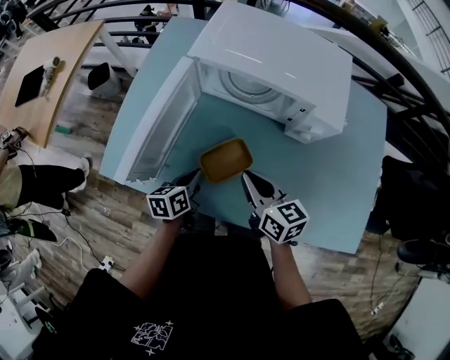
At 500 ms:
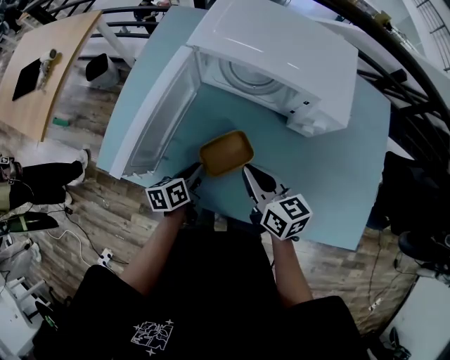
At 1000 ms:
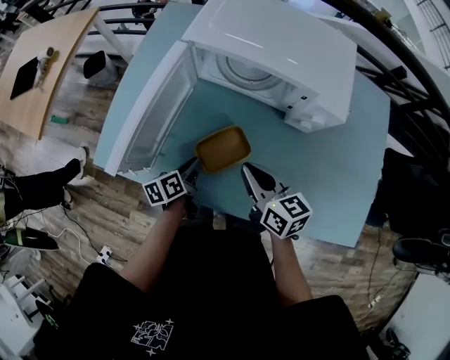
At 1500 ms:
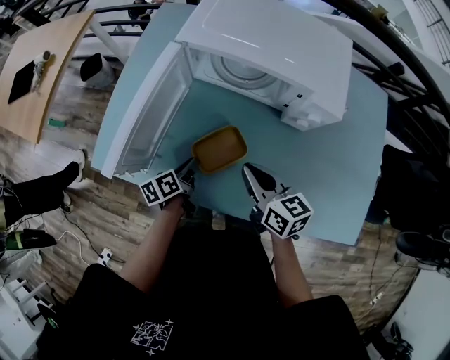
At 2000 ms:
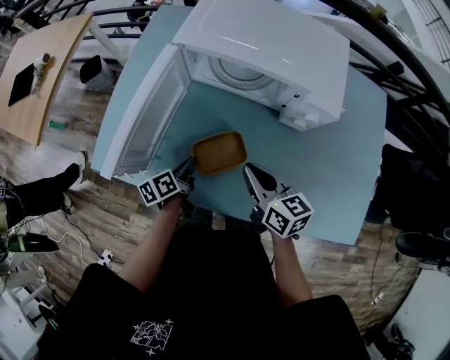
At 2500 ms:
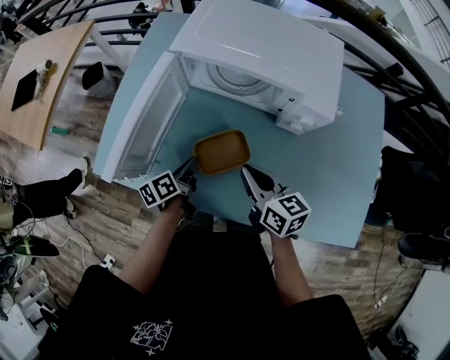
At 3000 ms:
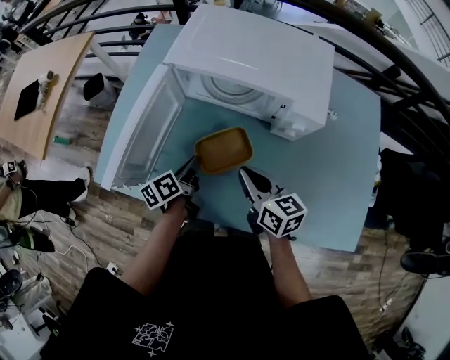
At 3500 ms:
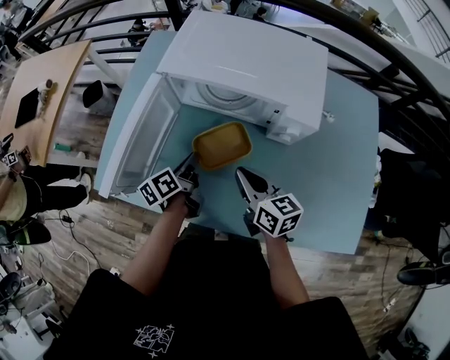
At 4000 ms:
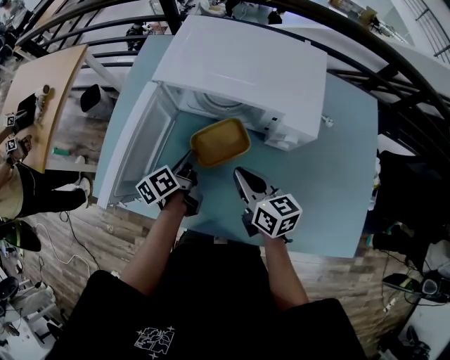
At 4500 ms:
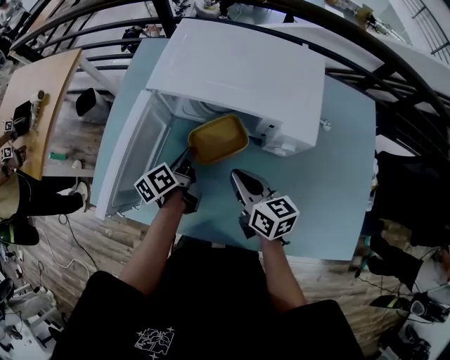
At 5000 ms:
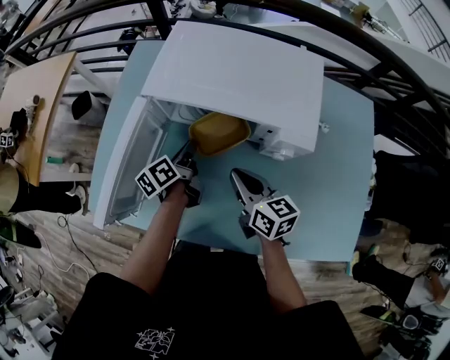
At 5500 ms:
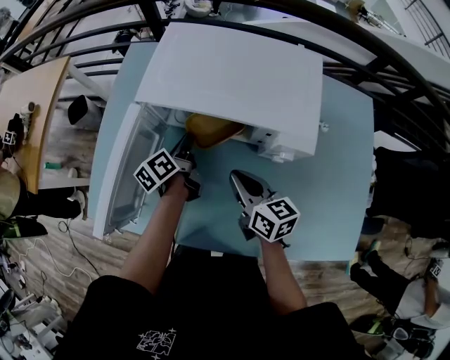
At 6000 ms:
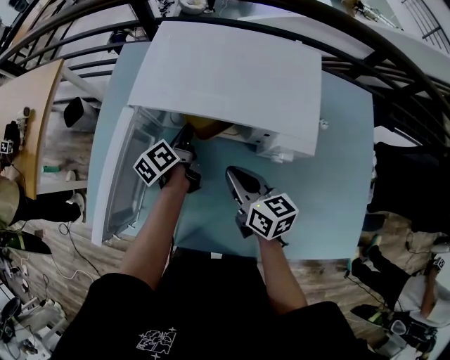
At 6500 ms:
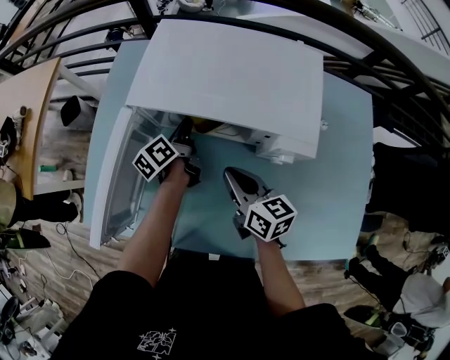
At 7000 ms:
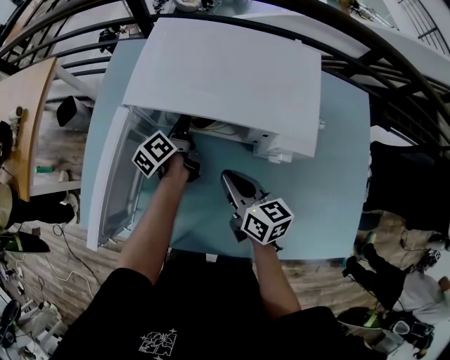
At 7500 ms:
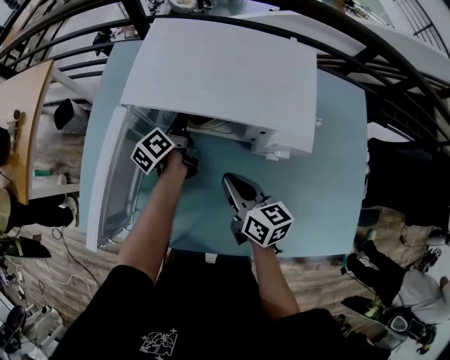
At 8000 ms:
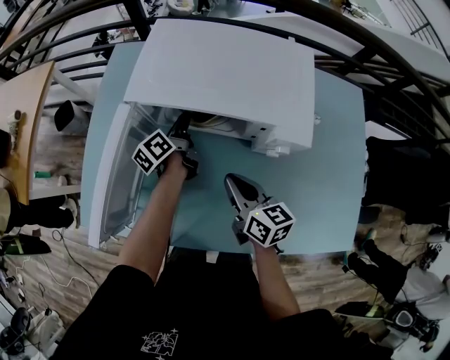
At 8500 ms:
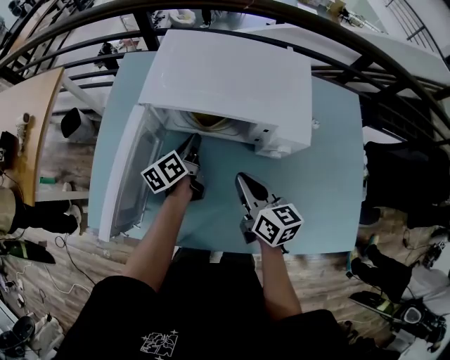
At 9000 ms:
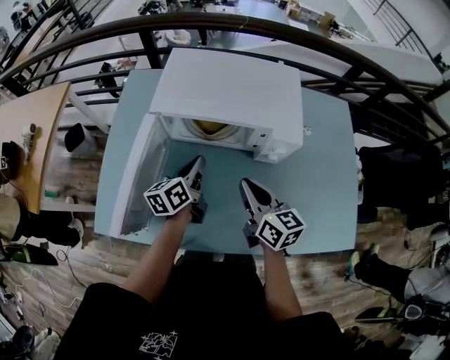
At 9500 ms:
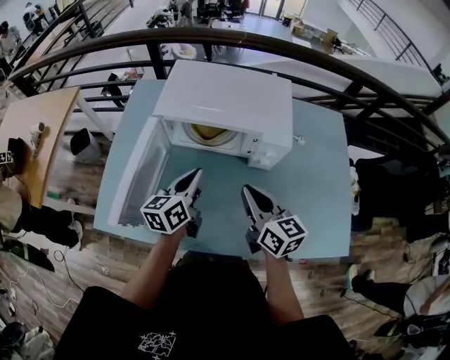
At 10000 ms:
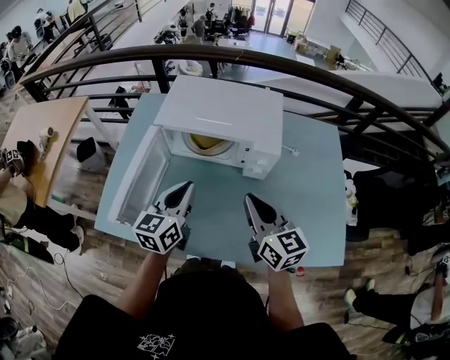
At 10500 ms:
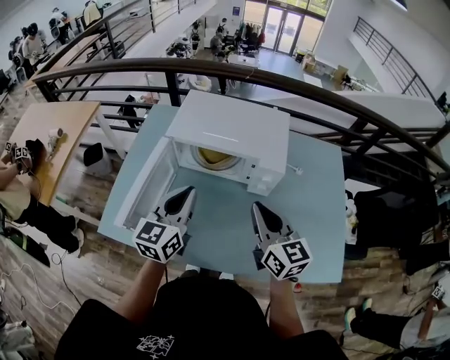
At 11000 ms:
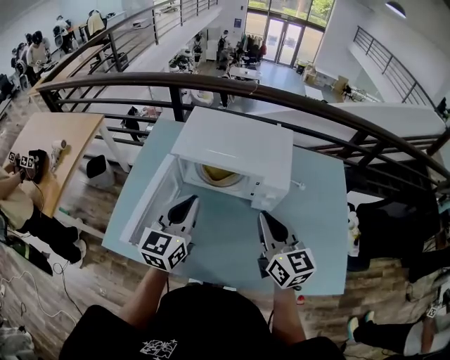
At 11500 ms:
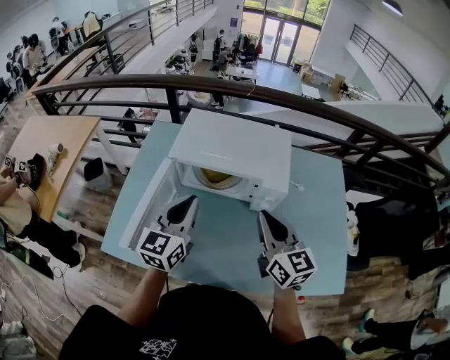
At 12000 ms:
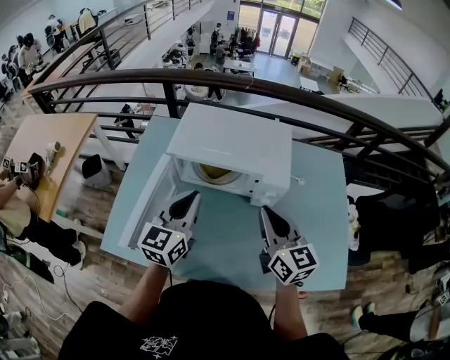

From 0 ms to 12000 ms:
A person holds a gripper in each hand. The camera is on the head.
From 0 ms to 2000 ms: The left gripper swivels approximately 20 degrees.
From 2000 ms to 4000 ms: The right gripper is displaced forward by about 5 cm. Meanwhile the left gripper goes some 15 cm forward, upward and to the right.
From 4000 ms to 6000 ms: The left gripper goes some 15 cm forward. Meanwhile the right gripper goes about 5 cm forward.
From 6000 ms to 8000 ms: The grippers make only small movements.
From 8000 ms to 10000 ms: The right gripper heads upward and backward, covering roughly 20 cm, and swivels about 20 degrees. Meanwhile the left gripper moves backward and upward, some 30 cm, and rolls clockwise, seen from behind, by roughly 50 degrees.
From 10000 ms to 12000 ms: The left gripper shifts about 5 cm upward, while the right gripper moves roughly 5 cm.

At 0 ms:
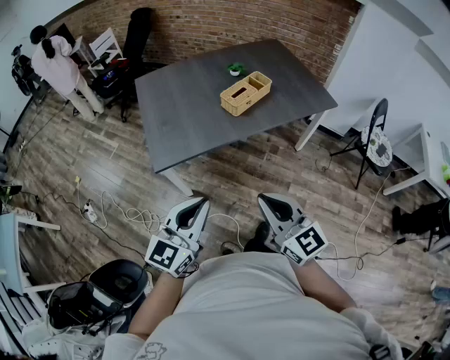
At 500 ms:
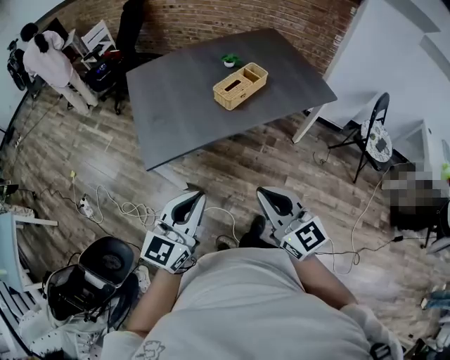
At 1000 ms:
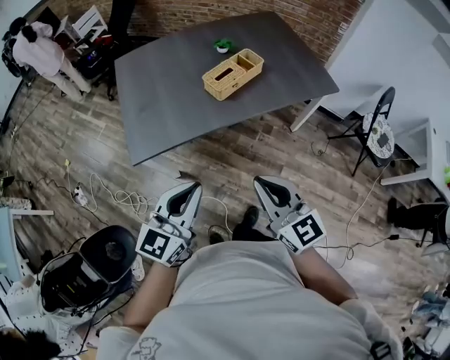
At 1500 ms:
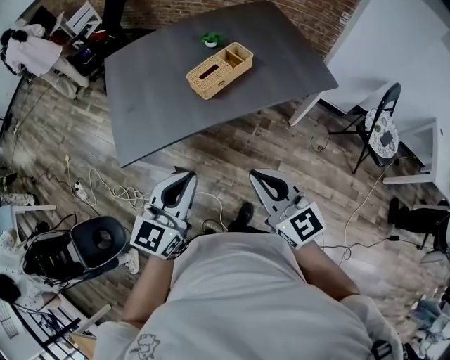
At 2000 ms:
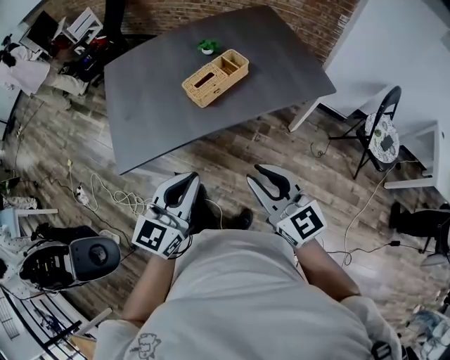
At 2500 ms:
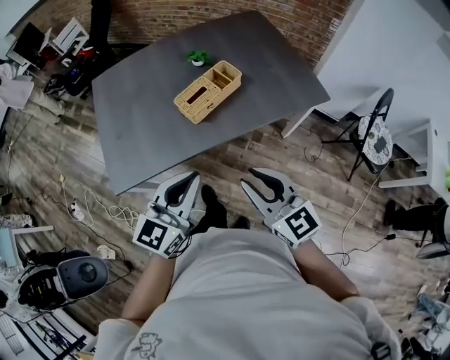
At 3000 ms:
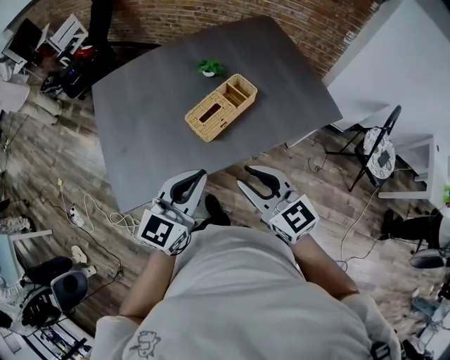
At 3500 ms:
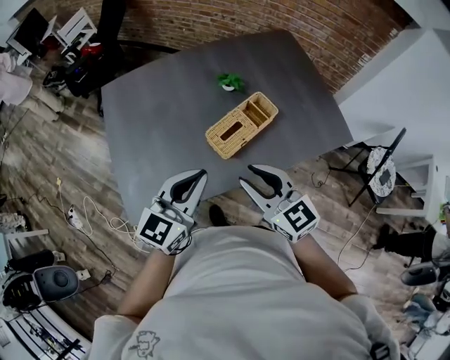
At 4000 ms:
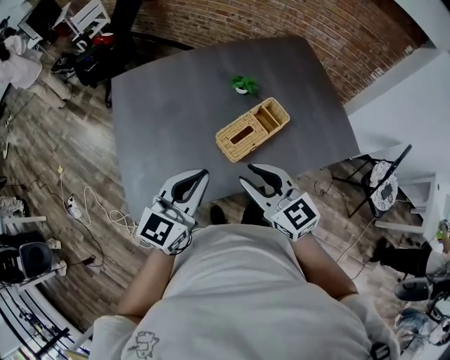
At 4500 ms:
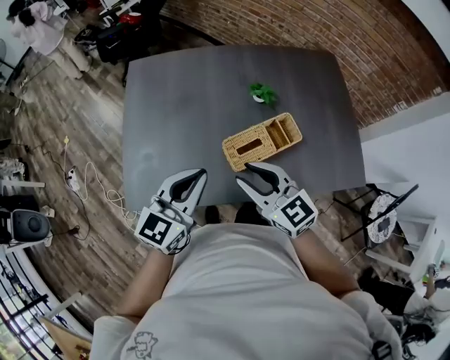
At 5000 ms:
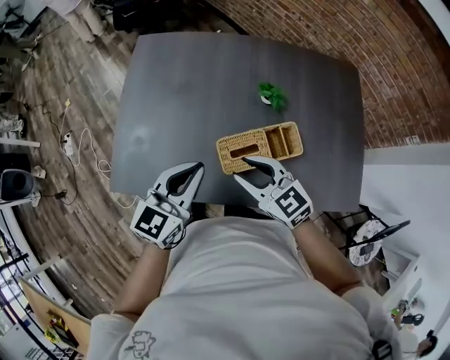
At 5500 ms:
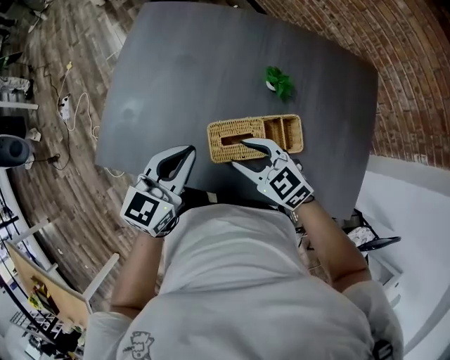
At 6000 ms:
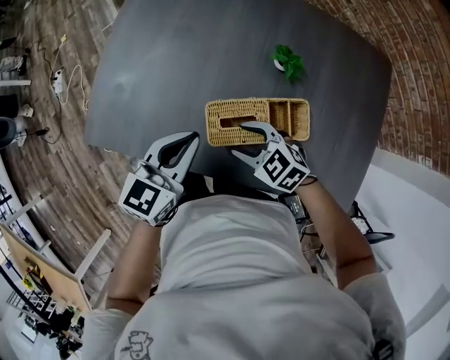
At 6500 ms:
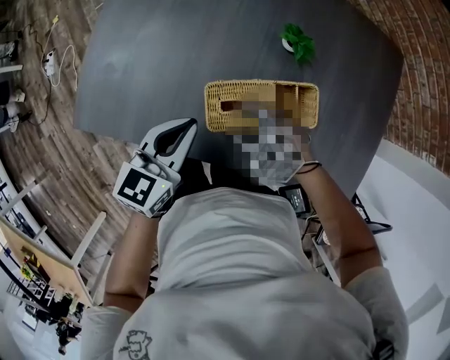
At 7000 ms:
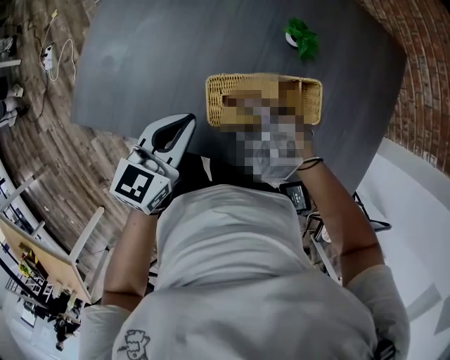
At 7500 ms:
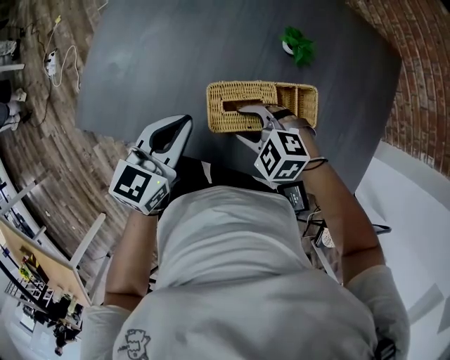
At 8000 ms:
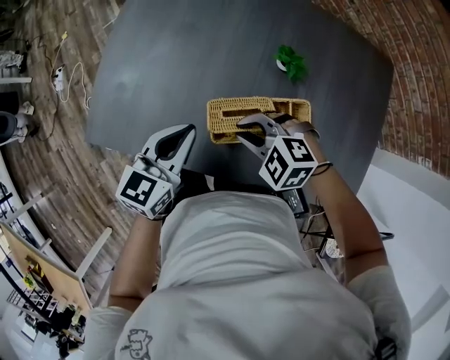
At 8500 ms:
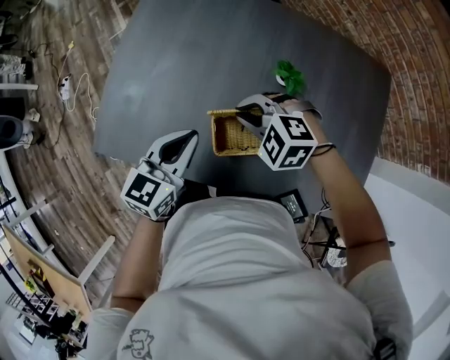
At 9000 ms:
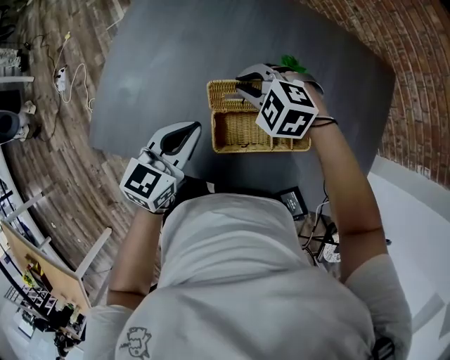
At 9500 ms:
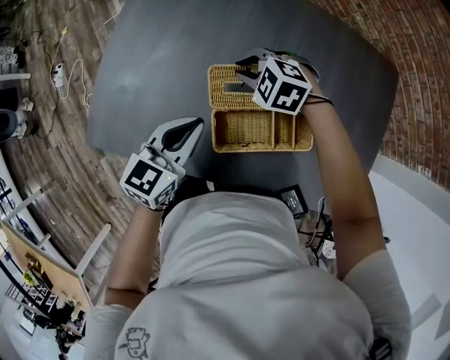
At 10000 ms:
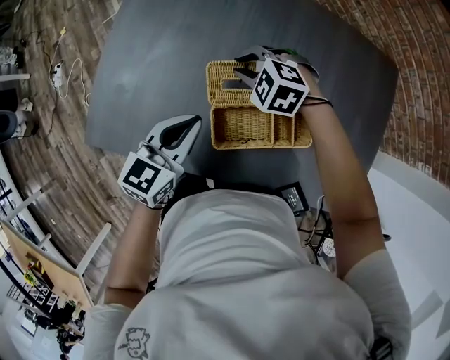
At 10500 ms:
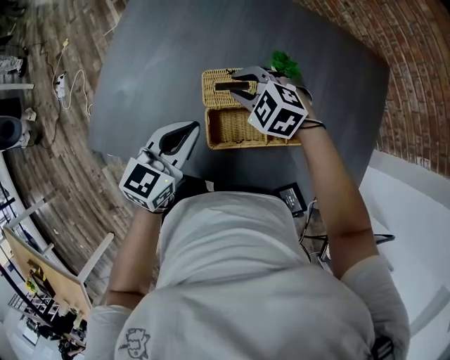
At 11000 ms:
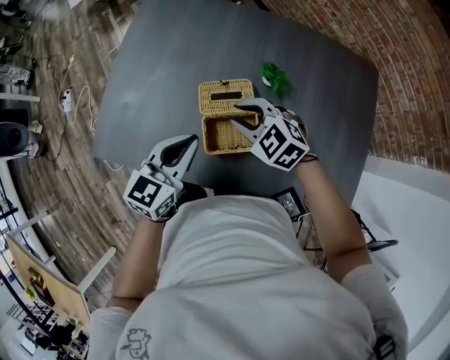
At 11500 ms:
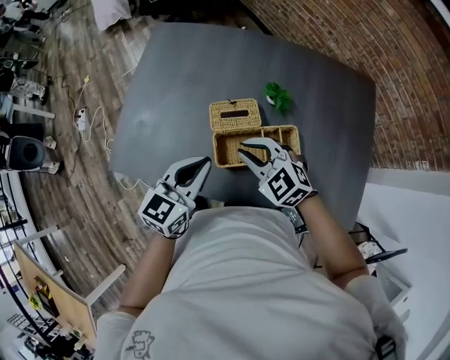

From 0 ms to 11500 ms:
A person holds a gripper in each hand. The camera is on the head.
From 0 ms to 2000 ms: The grippers both shift to the right and forward by about 25 cm. The right gripper opens up.
From 2000 ms to 4000 ms: The two grippers go about 30 cm forward and to the left.
From 4000 ms to 6000 ms: The left gripper goes about 10 cm downward, and changes its angle by roughly 30 degrees. The right gripper heads downward, covering roughly 20 cm, points its fingers some 30 degrees further downward, and opens up.
From 6000 ms to 7500 ms: The right gripper rotates some 20 degrees.
From 7500 ms to 9500 ms: The left gripper moves some 5 cm. Meanwhile the right gripper heads forward, covering some 20 cm, and closes its fingers.
From 9500 ms to 11500 ms: The left gripper goes about 10 cm backward and upward; the right gripper shifts about 20 cm backward and upward, and rotates approximately 30 degrees.

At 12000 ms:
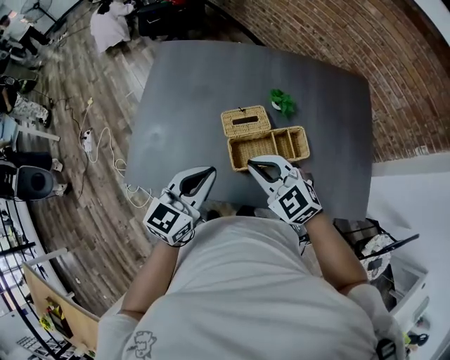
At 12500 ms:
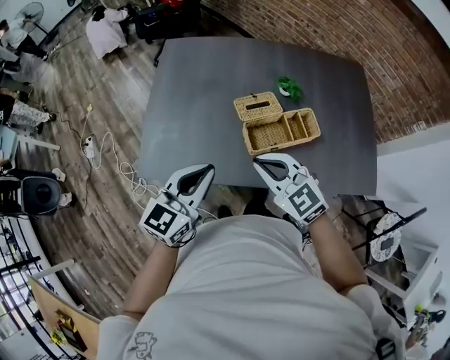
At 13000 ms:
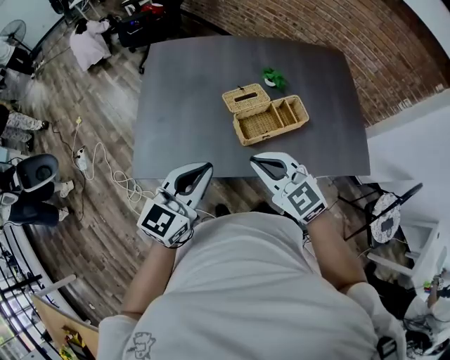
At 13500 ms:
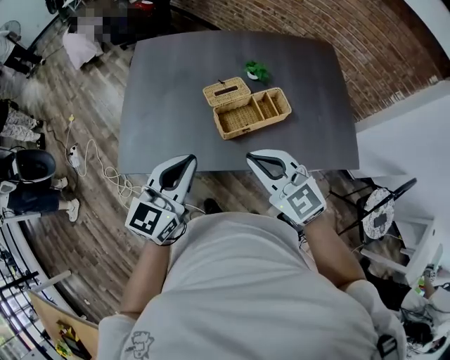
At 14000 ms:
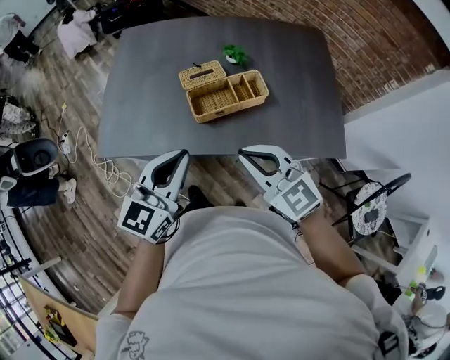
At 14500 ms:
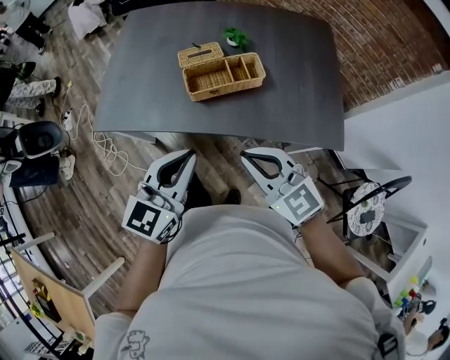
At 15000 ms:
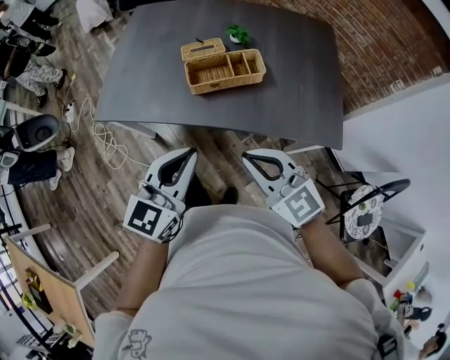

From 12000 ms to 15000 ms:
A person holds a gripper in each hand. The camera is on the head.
From 12000 ms to 13500 ms: The grippers both shift backward and upward by about 15 cm.
From 13500 ms to 15000 ms: The two grippers go approximately 20 cm backward and to the right.
